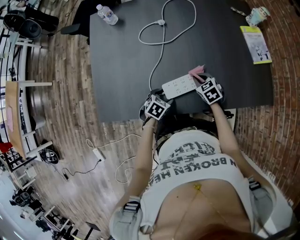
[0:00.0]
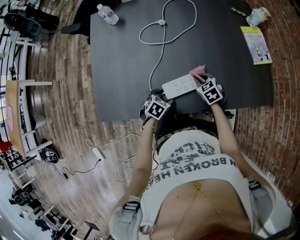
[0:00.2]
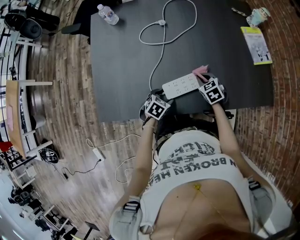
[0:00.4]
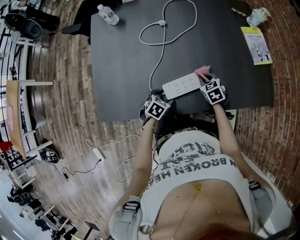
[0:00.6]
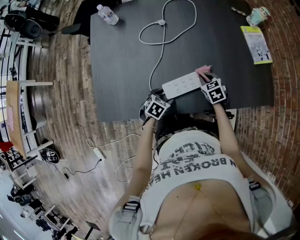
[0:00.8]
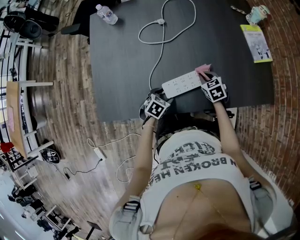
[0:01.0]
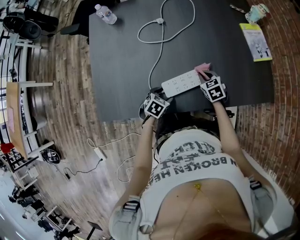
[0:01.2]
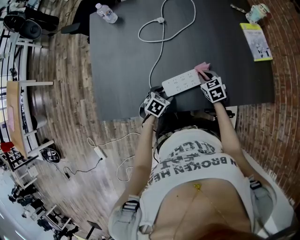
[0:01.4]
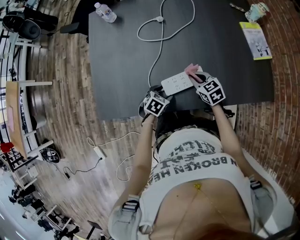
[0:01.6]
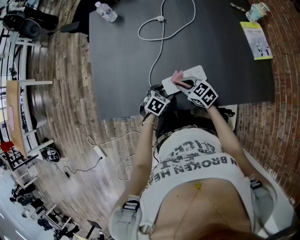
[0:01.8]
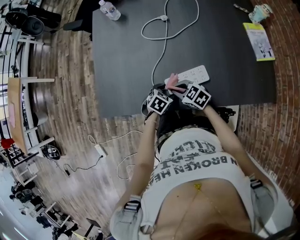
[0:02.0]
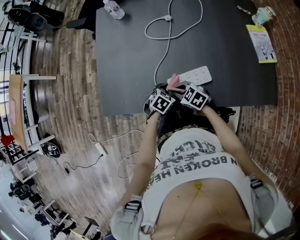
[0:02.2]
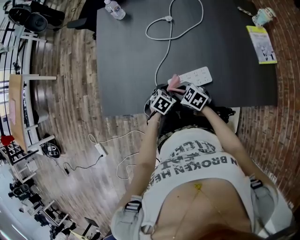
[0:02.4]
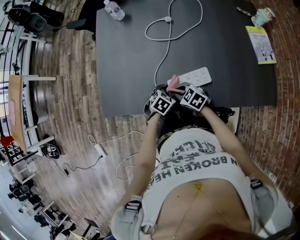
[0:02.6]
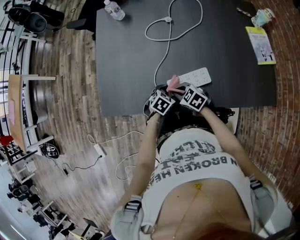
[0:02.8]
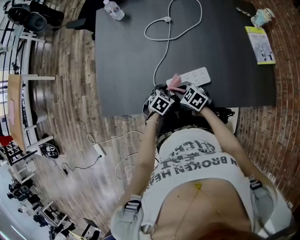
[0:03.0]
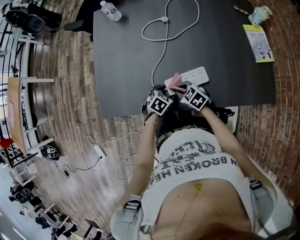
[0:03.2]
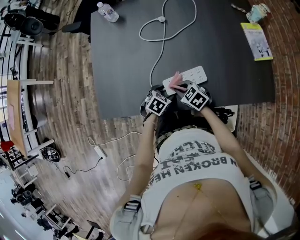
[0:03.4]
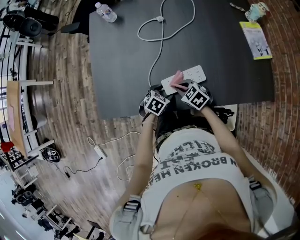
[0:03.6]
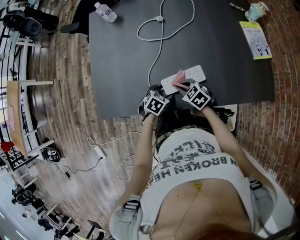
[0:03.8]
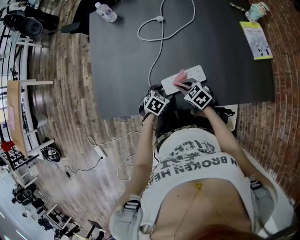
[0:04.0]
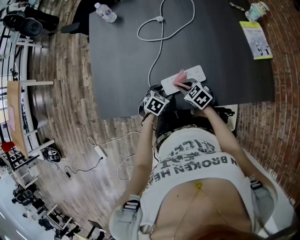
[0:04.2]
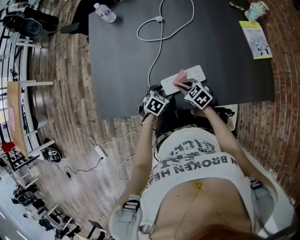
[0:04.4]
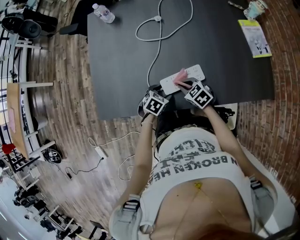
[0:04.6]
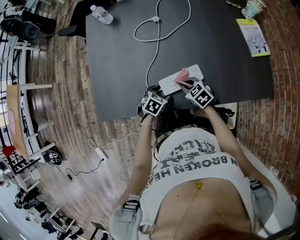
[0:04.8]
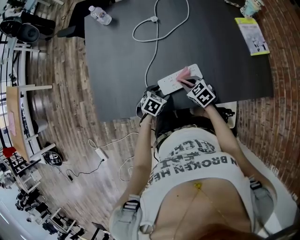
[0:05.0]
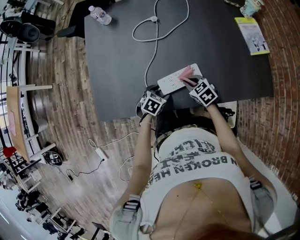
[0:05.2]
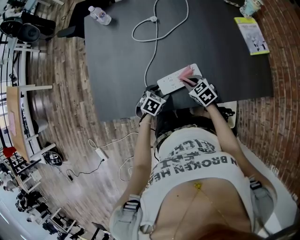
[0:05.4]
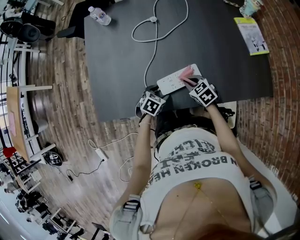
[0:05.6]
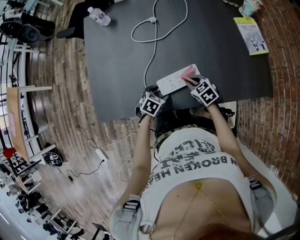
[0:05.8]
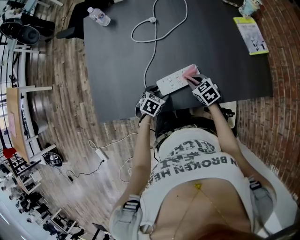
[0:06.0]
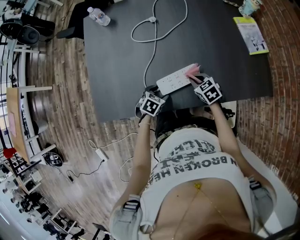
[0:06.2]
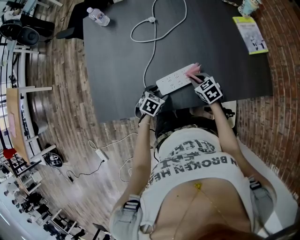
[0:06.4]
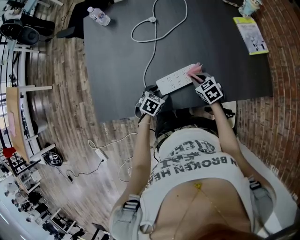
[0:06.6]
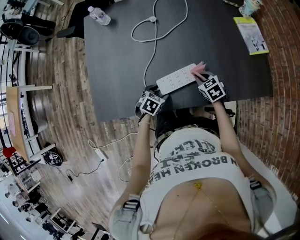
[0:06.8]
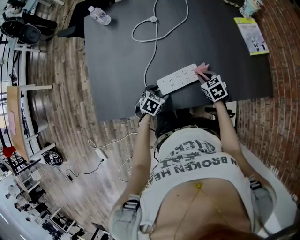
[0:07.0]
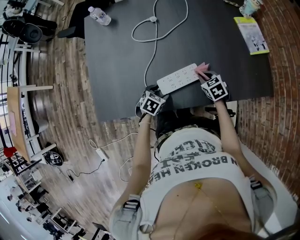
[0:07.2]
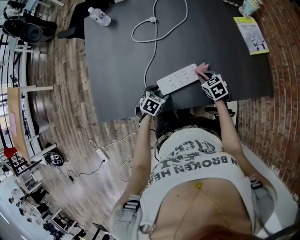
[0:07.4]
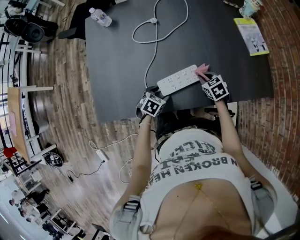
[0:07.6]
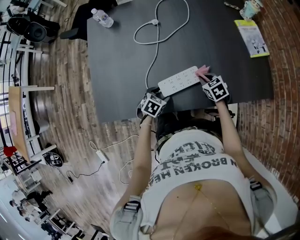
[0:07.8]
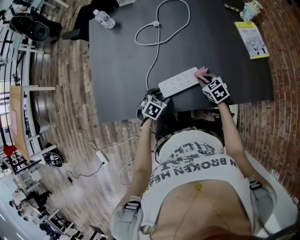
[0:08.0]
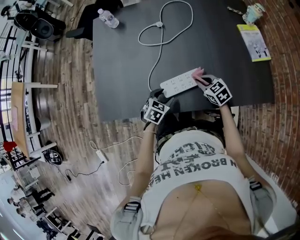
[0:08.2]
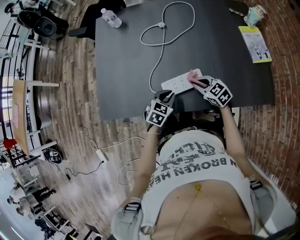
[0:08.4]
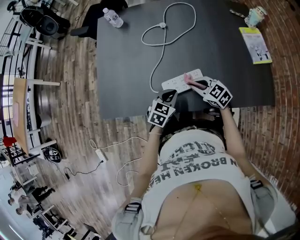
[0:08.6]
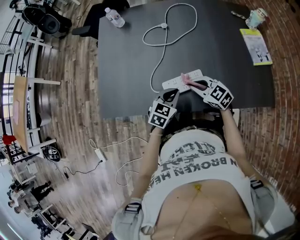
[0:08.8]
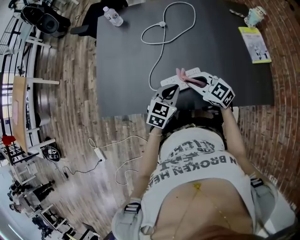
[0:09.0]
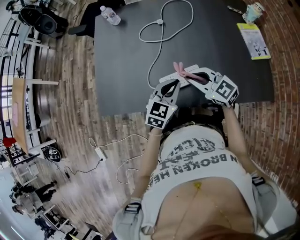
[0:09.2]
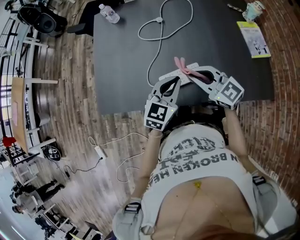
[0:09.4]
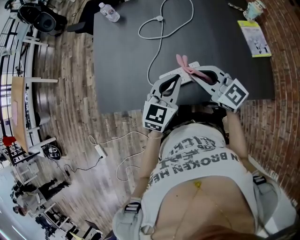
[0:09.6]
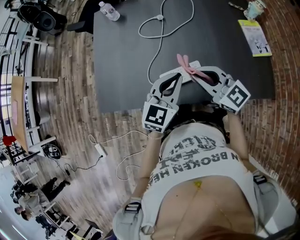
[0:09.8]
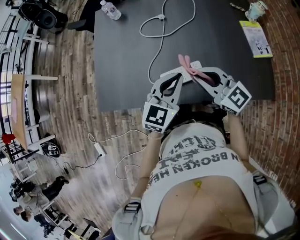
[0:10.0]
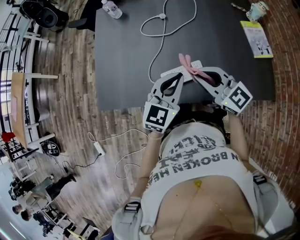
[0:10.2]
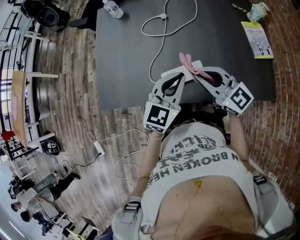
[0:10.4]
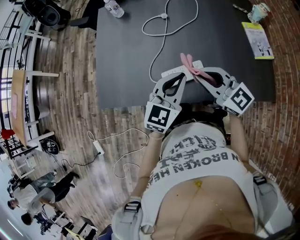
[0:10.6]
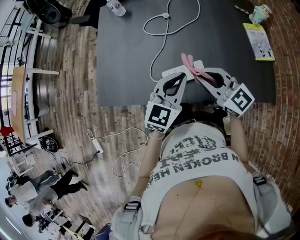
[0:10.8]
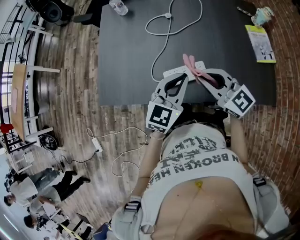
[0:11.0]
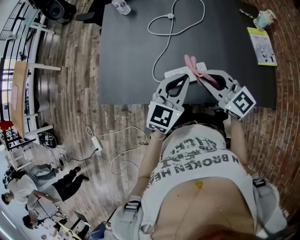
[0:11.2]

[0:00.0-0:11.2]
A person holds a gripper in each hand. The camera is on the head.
0:00.0 to 0:01.6: The grippers make only small movements.
0:01.6 to 0:03.2: The right gripper changes place by roughly 10 cm, and turns by roughly 20 degrees.
0:03.2 to 0:04.8: The right gripper ends up roughly 5 cm from where it was.
0:04.8 to 0:06.4: The right gripper travels to the right by approximately 5 cm.
0:06.4 to 0:08.0: The grippers stay close to where they were, moving slightly.
0:08.0 to 0:09.6: The grippers both shift upward by roughly 25 cm. The right gripper points its fingers about 40 degrees further upward; the left gripper tilts its fingers about 40 degrees upward, and closes up.
0:09.6 to 0:11.2: The grippers move only a little.

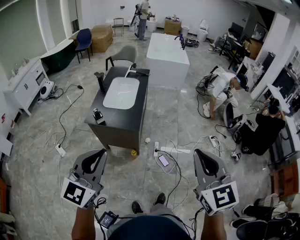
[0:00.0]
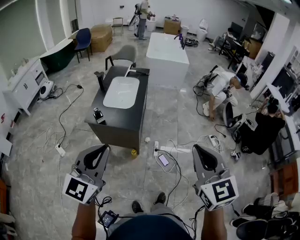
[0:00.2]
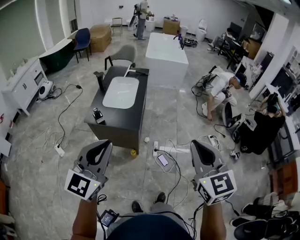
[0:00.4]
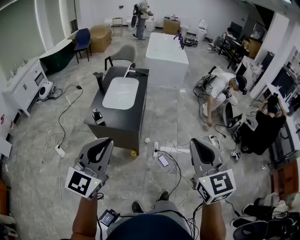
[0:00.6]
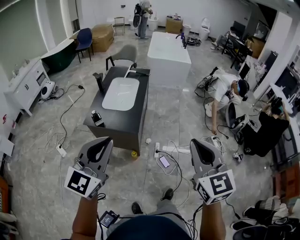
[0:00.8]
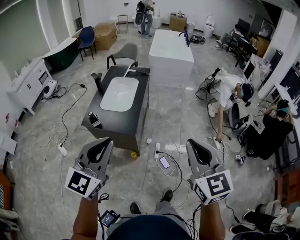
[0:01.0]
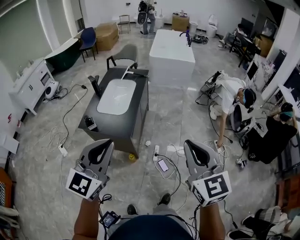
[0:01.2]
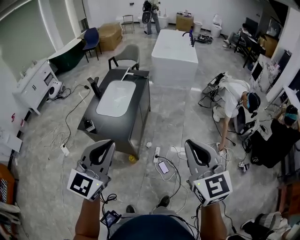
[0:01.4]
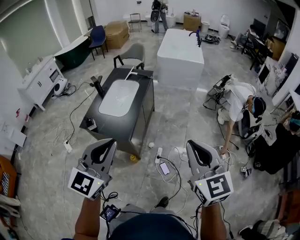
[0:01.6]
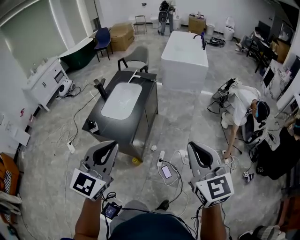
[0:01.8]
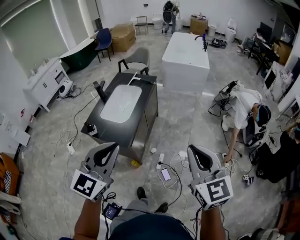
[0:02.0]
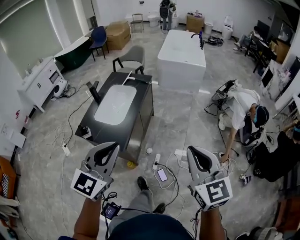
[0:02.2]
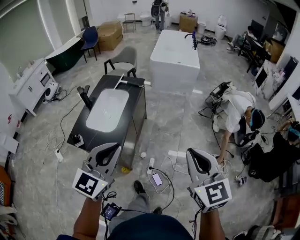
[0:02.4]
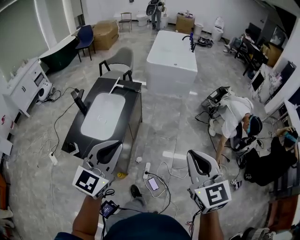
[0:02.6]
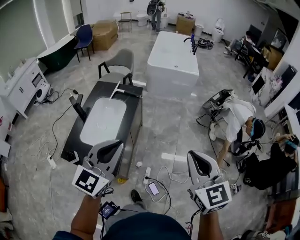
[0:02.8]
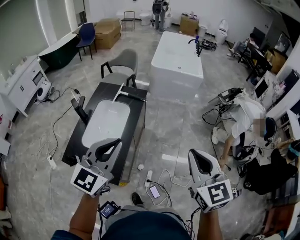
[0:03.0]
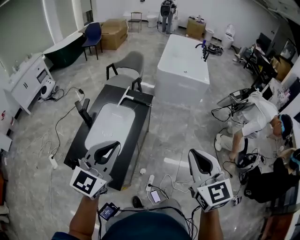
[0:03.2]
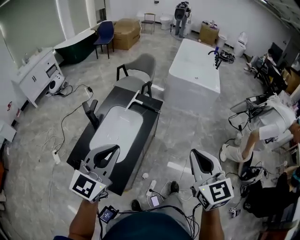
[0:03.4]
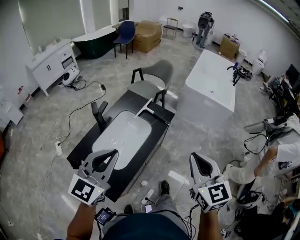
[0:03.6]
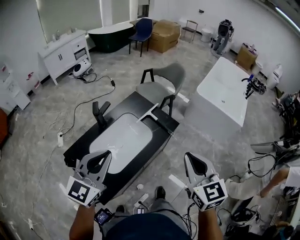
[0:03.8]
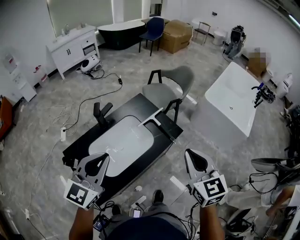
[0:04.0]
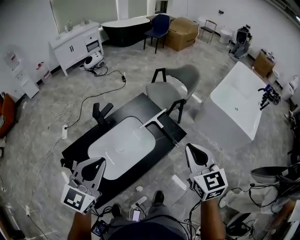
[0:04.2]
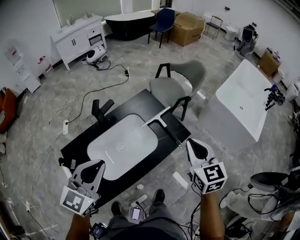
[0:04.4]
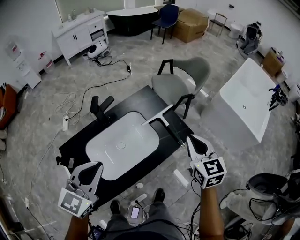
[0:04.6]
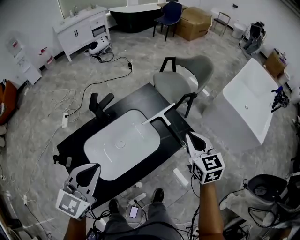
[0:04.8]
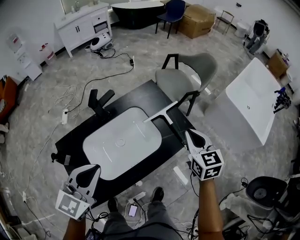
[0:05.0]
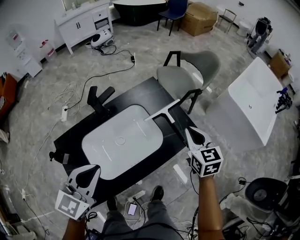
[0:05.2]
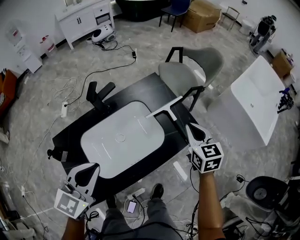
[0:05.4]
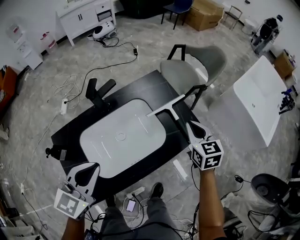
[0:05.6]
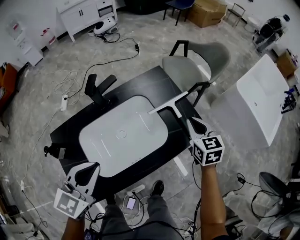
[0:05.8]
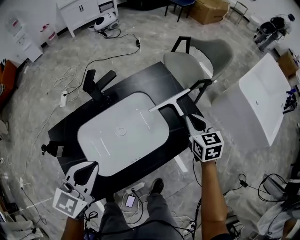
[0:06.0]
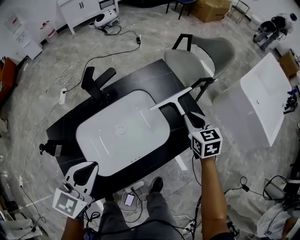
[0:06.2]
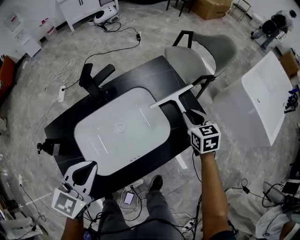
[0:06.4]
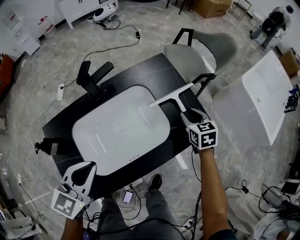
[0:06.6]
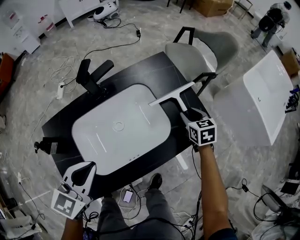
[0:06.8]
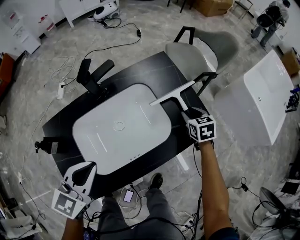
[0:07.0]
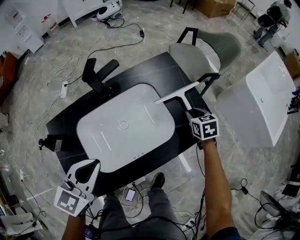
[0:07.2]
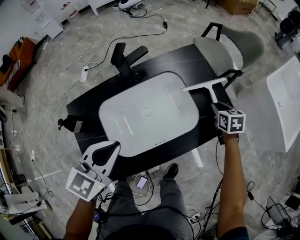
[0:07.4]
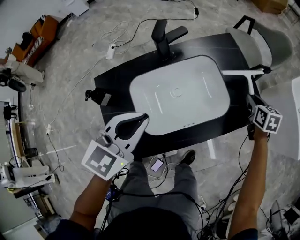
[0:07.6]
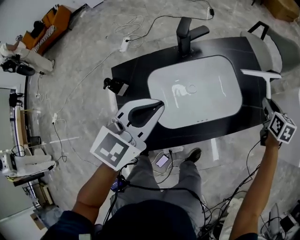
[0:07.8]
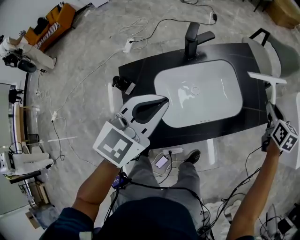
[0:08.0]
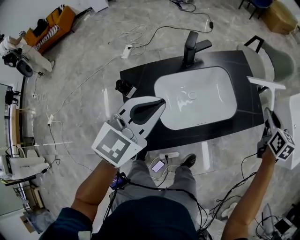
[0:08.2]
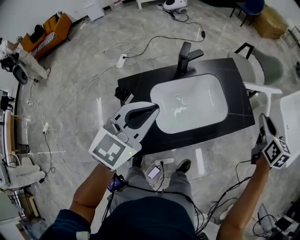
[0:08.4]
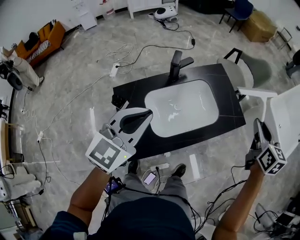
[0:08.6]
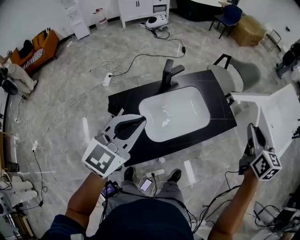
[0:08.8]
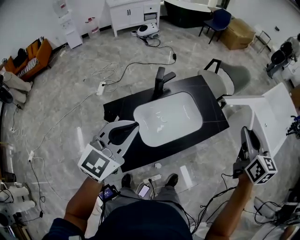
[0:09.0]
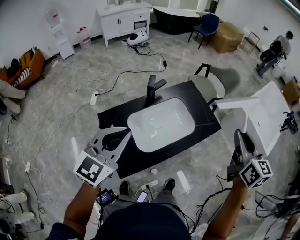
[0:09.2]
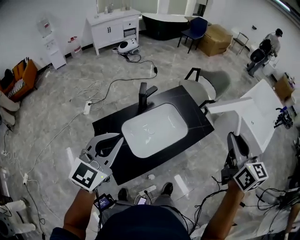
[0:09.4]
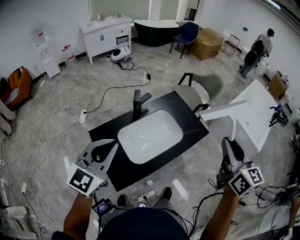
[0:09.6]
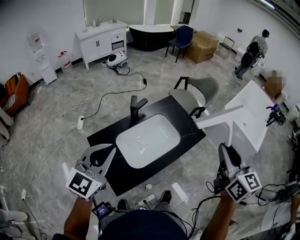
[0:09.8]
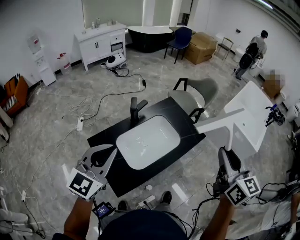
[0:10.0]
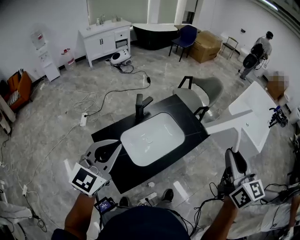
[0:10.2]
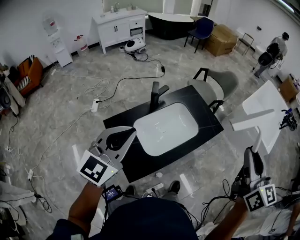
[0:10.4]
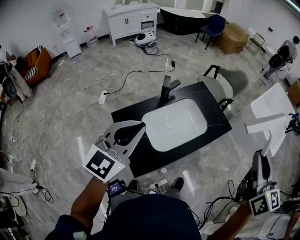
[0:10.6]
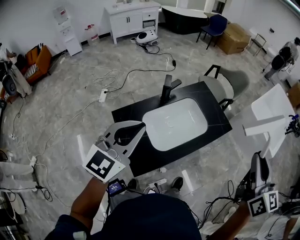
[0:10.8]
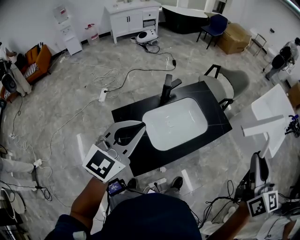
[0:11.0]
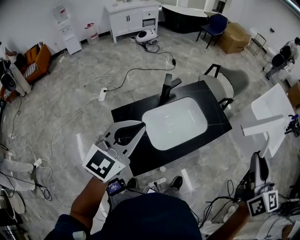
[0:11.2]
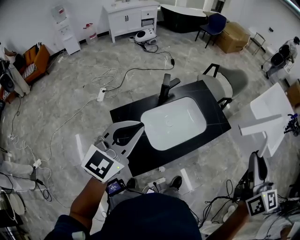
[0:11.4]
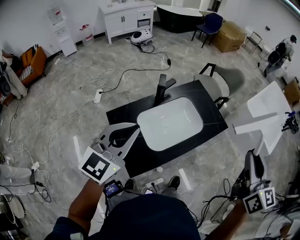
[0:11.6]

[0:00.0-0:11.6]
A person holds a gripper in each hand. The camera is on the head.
0:00.0 to 0:01.4: The right gripper goes roughly 25 cm forward and to the right. Meanwhile the left gripper goes approximately 25 cm to the right and forward.
0:01.4 to 0:02.8: Both grippers travel together forward, roughly 30 cm.
0:02.8 to 0:04.4: The right gripper shifts by about 60 cm, and changes its angle by approximately 40 degrees, while the left gripper ends up roughly 35 cm from where it was, and turns by about 40 degrees.
0:04.4 to 0:05.8: The left gripper goes approximately 15 cm downward, while the right gripper heads downward and forward, covering about 25 cm.
0:05.8 to 0:07.2: The right gripper goes roughly 15 cm downward, and changes its angle by roughly 20 degrees. Meanwhile the left gripper shifts some 5 cm downward.
0:07.2 to 0:08.8: The left gripper shifts some 25 cm upward and backward, and rotates roughly 20 degrees; the right gripper shifts roughly 50 cm upward and backward, and points its fingers some 30 degrees further upward.
0:08.8 to 0:10.2: The right gripper is displaced backward and upward by roughly 20 cm, while the left gripper moves upward, approximately 5 cm.
0:10.2 to 0:11.6: The grippers stay close to where they were, moving slightly.

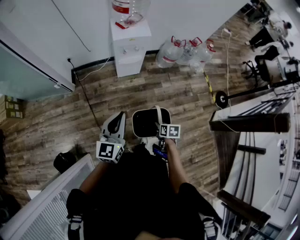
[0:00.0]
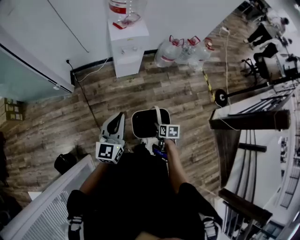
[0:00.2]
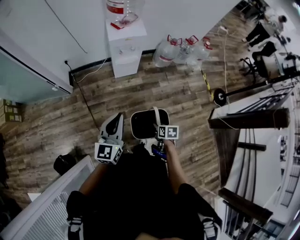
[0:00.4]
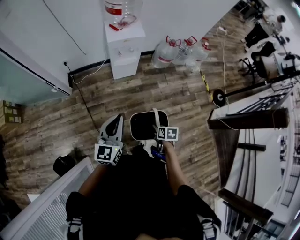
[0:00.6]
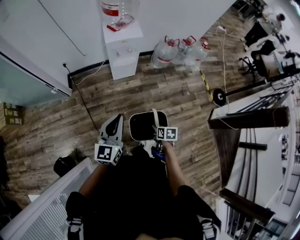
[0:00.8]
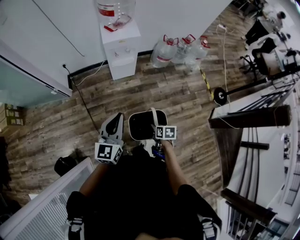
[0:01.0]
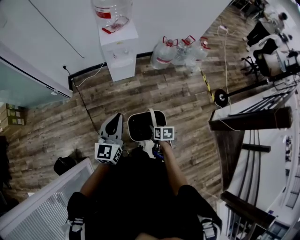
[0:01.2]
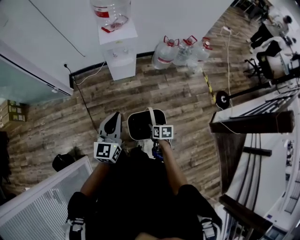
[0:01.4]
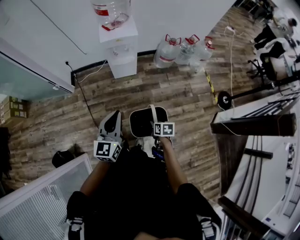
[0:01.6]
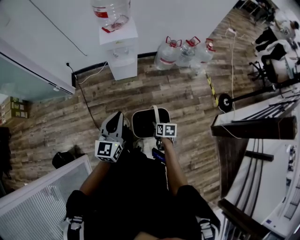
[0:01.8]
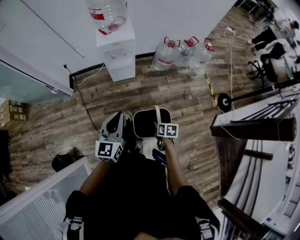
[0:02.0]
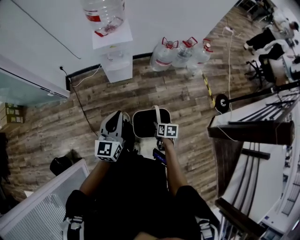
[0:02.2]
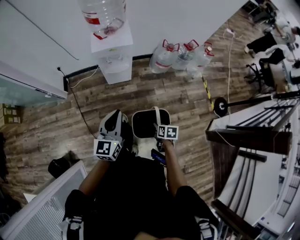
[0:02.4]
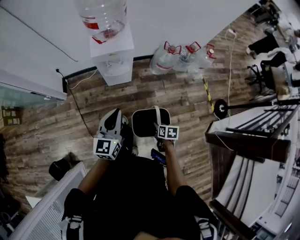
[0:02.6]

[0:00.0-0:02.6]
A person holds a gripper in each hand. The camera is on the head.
0:00.0 to 0:01.2: The left gripper moves to the right, approximately 5 cm.
0:01.2 to 0:02.6: The grippers both shift forward and to the right by some 20 cm.
